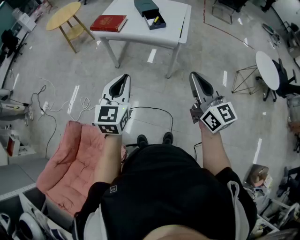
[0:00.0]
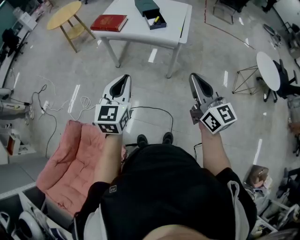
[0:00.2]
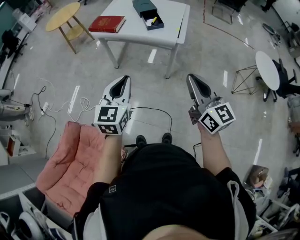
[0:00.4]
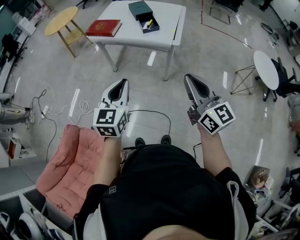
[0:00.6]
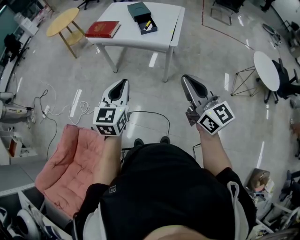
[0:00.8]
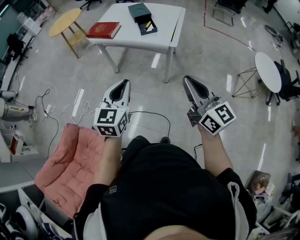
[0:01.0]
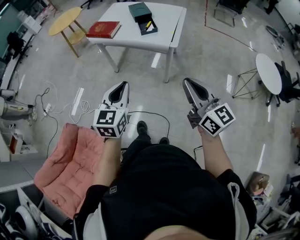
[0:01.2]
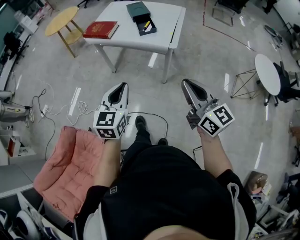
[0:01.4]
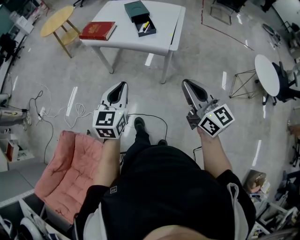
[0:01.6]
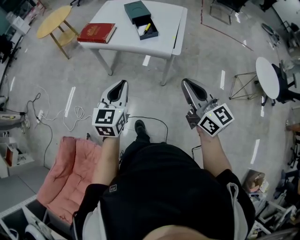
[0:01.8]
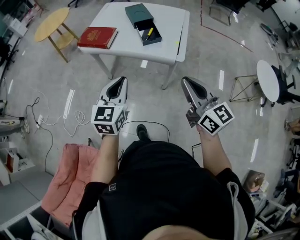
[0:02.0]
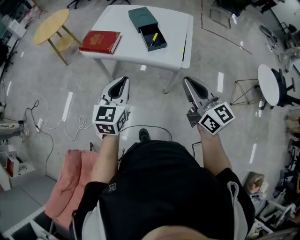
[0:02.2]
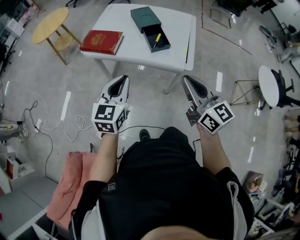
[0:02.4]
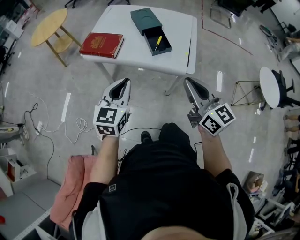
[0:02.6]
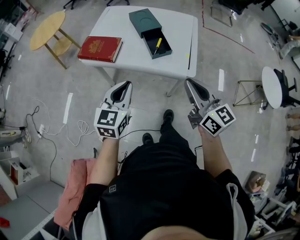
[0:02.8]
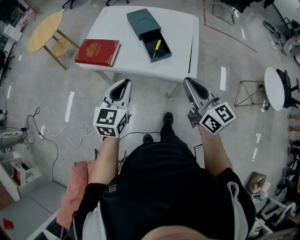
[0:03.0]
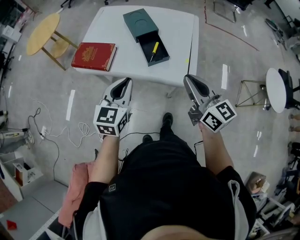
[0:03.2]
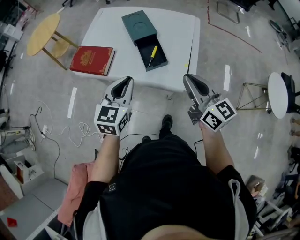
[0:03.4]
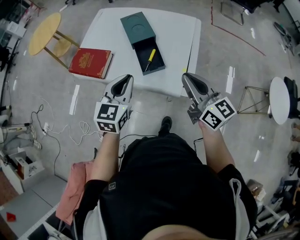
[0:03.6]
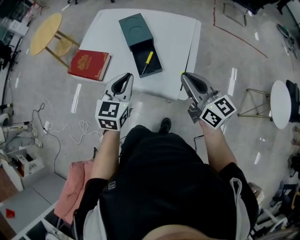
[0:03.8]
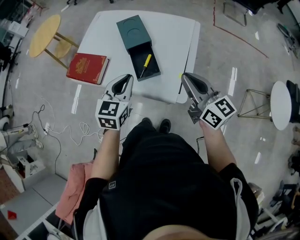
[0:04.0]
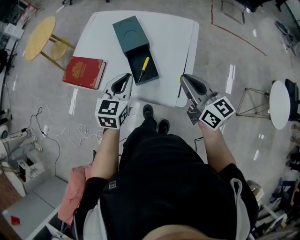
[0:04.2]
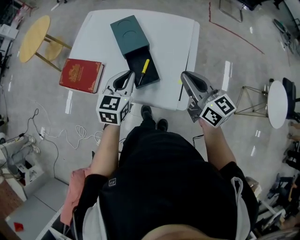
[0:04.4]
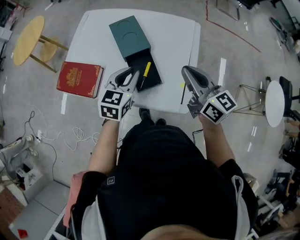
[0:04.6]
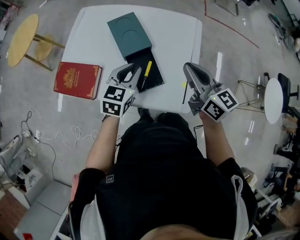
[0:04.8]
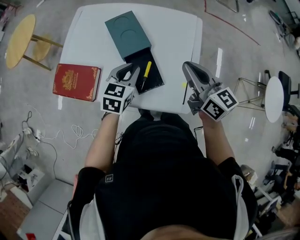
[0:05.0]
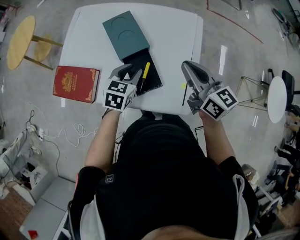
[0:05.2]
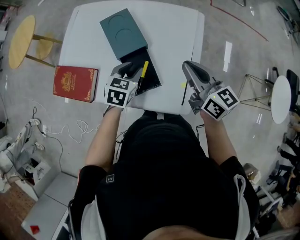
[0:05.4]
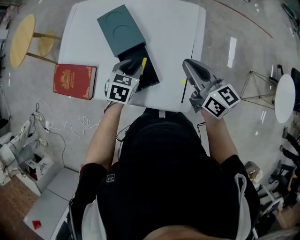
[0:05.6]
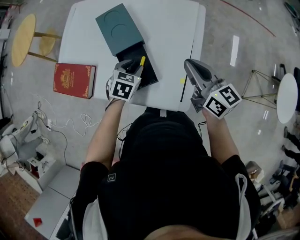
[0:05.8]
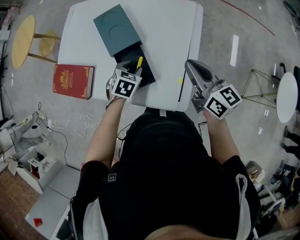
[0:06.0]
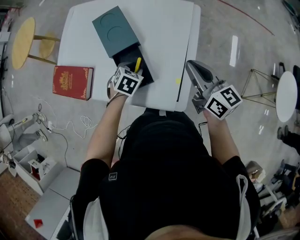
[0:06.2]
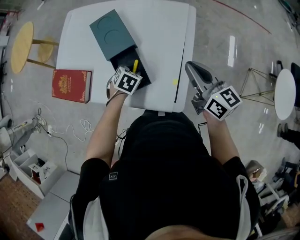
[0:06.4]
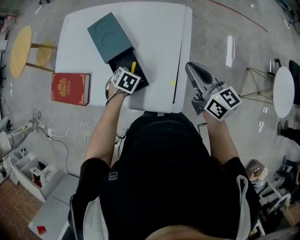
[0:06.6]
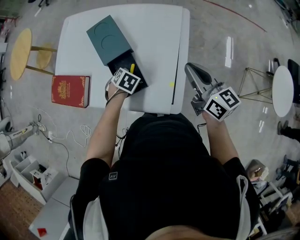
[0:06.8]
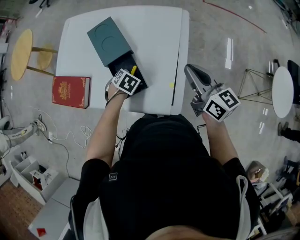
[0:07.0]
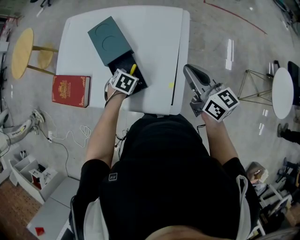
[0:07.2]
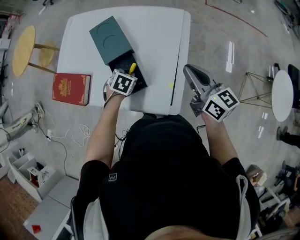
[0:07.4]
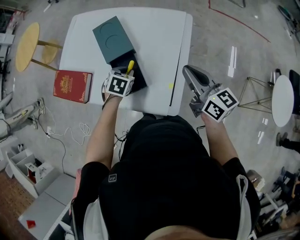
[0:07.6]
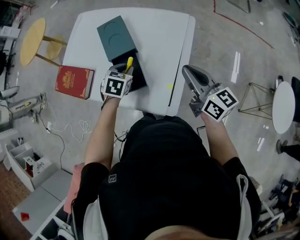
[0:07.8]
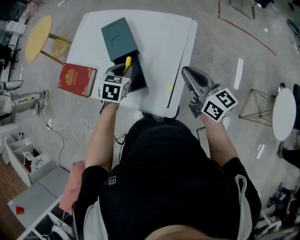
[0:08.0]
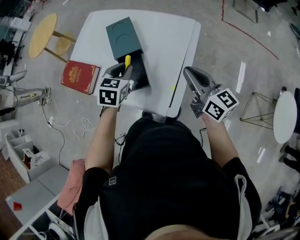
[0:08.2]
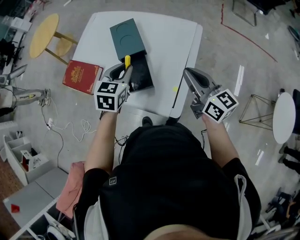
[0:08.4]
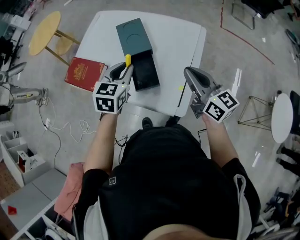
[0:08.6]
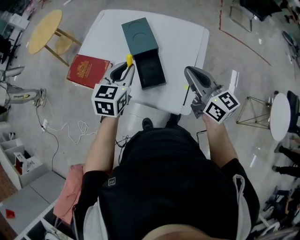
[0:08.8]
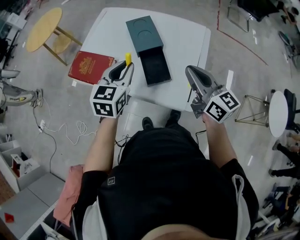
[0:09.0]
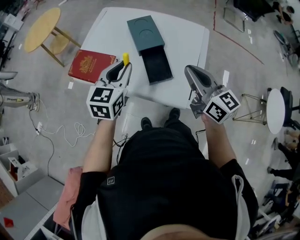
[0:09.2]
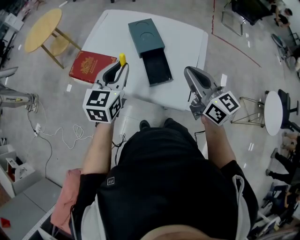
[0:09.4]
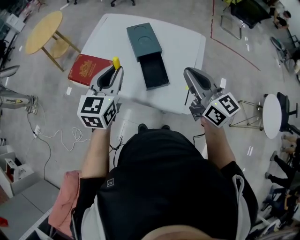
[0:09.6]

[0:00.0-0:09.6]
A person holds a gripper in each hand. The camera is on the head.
0:00.0 to 0:01.6: The grippers both shift to the right and forward by approximately 10 cm.
0:01.6 to 0:03.2: Both grippers travel together forward, about 35 cm.
0:03.2 to 0:04.8: The right gripper is displaced forward by roughly 25 cm; the left gripper heads forward and to the right, covering some 30 cm.
0:04.8 to 0:06.4: The right gripper heads to the right and downward, covering approximately 10 cm. Meanwhile the left gripper is displaced downward by some 20 cm, angles its fingers downward, by approximately 40 degrees, and opens.
0:06.4 to 0:08.0: The left gripper goes some 15 cm upward, swivels roughly 30 degrees, and closes up.
0:08.0 to 0:09.6: The left gripper heads to the left, upward and backward, covering some 25 cm, and angles its fingers upward, by roughly 30 degrees. Meanwhile the right gripper shifts approximately 20 cm to the left and upward.

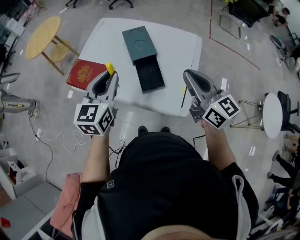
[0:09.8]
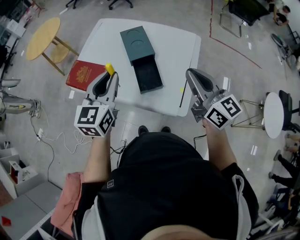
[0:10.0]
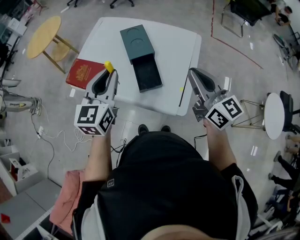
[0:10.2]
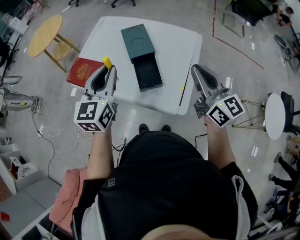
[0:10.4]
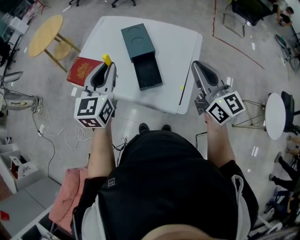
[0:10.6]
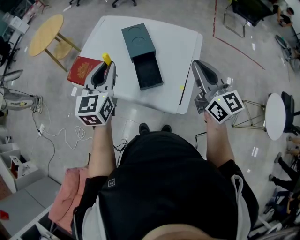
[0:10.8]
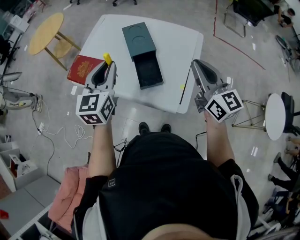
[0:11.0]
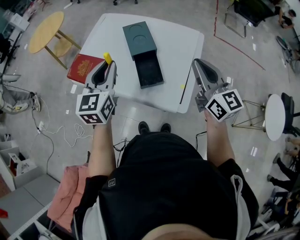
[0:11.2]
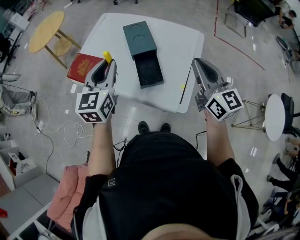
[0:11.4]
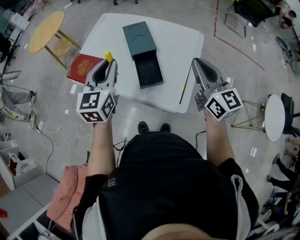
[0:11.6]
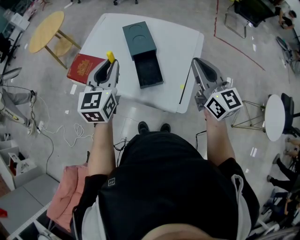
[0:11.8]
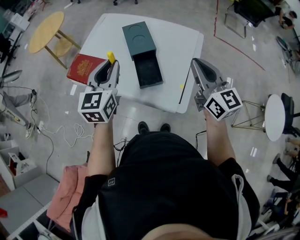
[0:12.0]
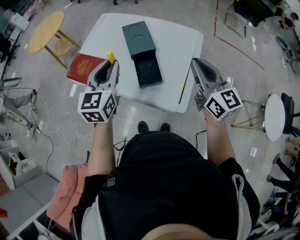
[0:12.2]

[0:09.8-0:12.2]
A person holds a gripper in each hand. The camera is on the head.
0:09.8 to 0:11.0: The right gripper shifts some 5 cm to the right.
0:11.0 to 0:12.2: The two grippers keep their place.

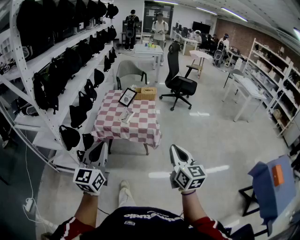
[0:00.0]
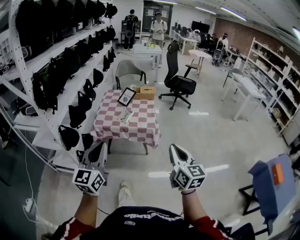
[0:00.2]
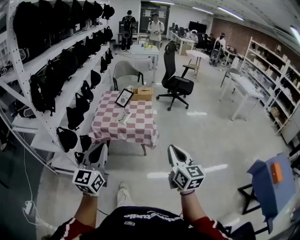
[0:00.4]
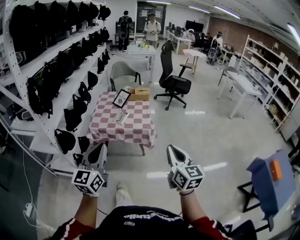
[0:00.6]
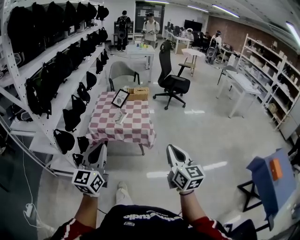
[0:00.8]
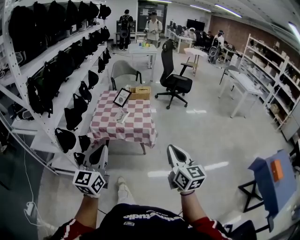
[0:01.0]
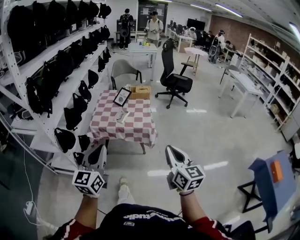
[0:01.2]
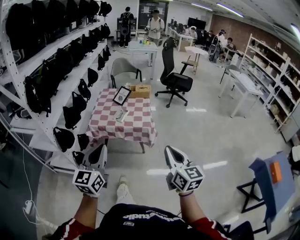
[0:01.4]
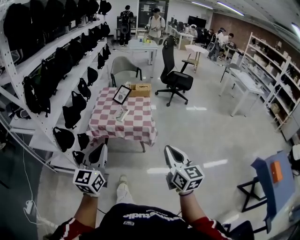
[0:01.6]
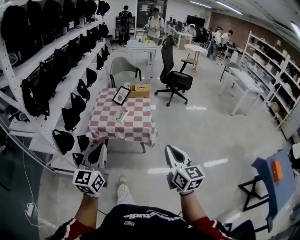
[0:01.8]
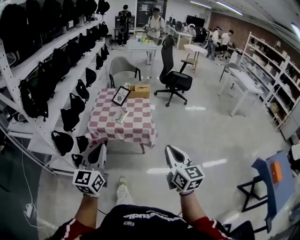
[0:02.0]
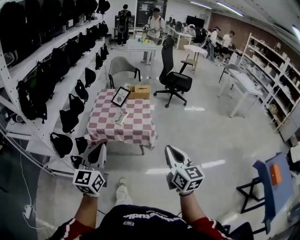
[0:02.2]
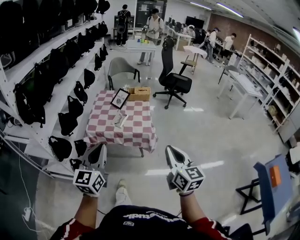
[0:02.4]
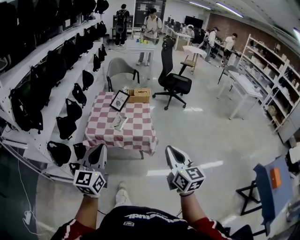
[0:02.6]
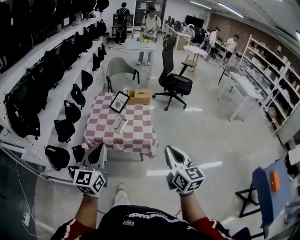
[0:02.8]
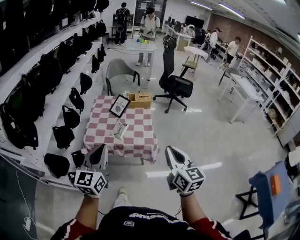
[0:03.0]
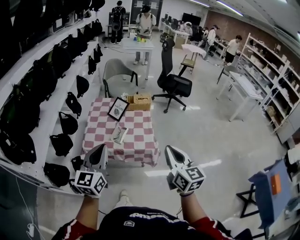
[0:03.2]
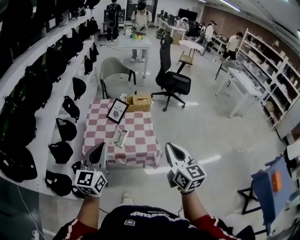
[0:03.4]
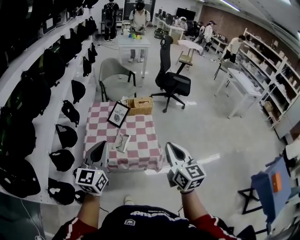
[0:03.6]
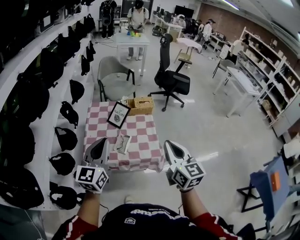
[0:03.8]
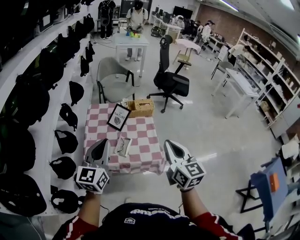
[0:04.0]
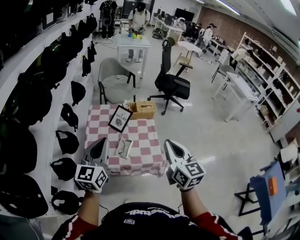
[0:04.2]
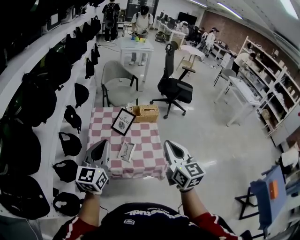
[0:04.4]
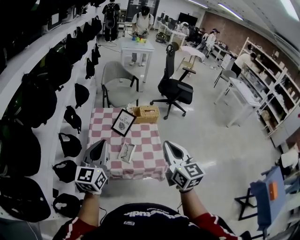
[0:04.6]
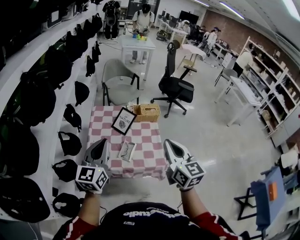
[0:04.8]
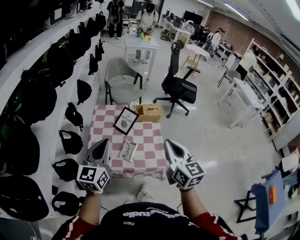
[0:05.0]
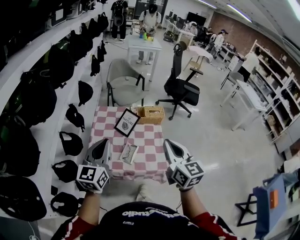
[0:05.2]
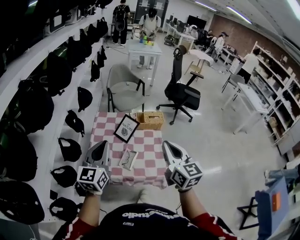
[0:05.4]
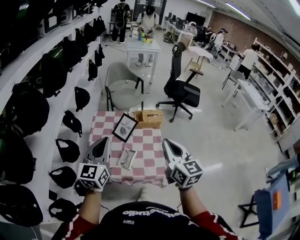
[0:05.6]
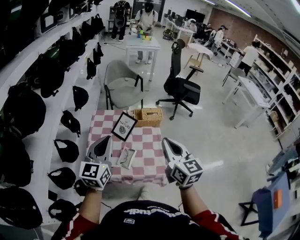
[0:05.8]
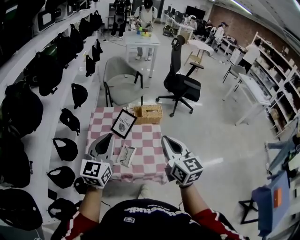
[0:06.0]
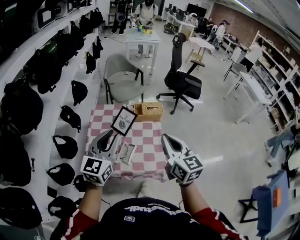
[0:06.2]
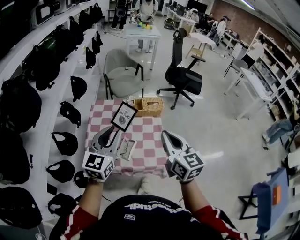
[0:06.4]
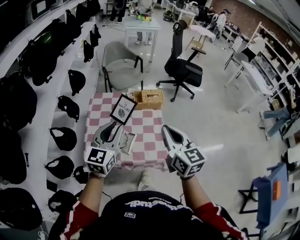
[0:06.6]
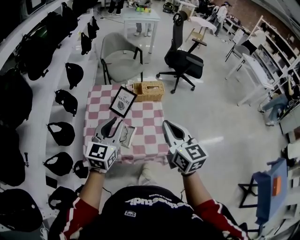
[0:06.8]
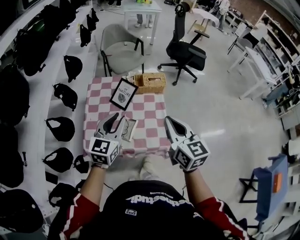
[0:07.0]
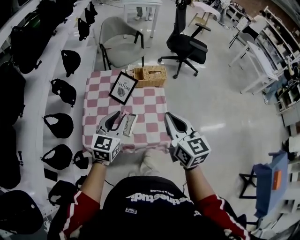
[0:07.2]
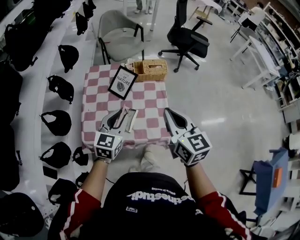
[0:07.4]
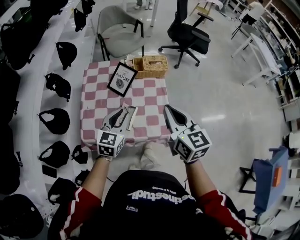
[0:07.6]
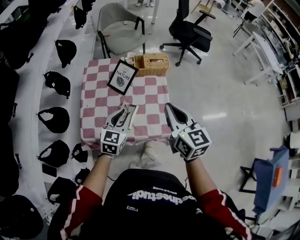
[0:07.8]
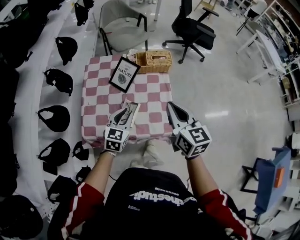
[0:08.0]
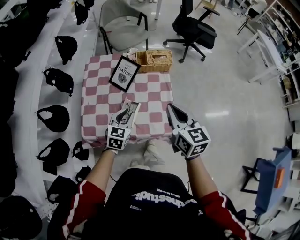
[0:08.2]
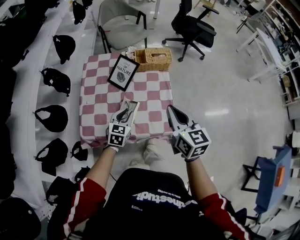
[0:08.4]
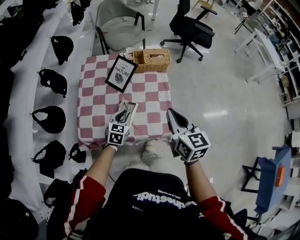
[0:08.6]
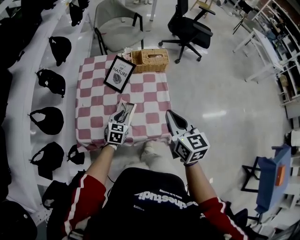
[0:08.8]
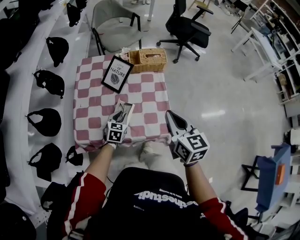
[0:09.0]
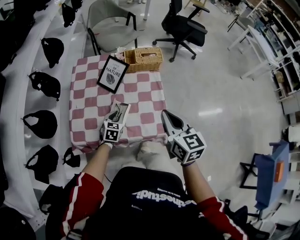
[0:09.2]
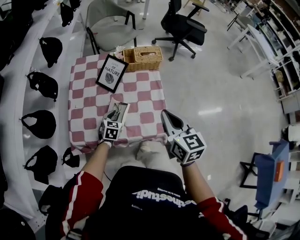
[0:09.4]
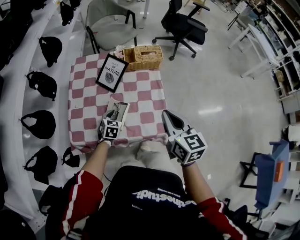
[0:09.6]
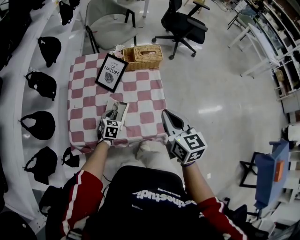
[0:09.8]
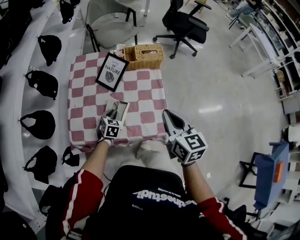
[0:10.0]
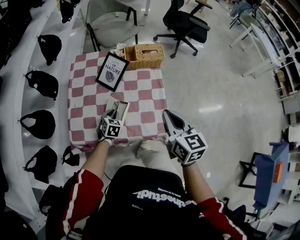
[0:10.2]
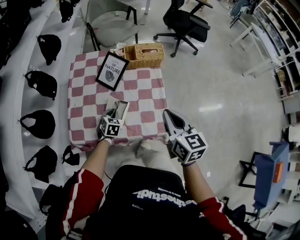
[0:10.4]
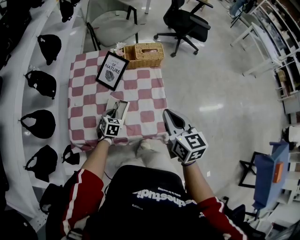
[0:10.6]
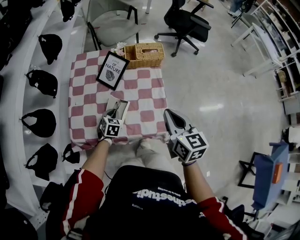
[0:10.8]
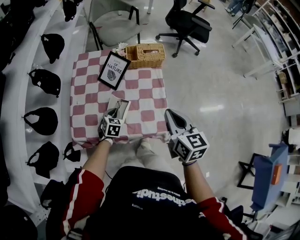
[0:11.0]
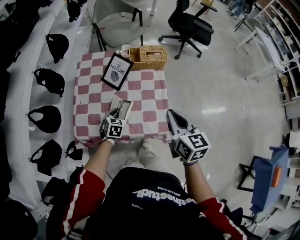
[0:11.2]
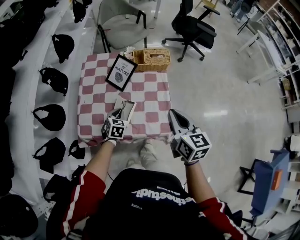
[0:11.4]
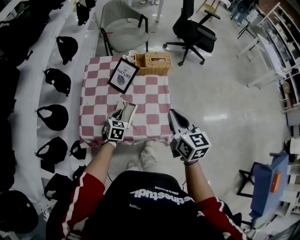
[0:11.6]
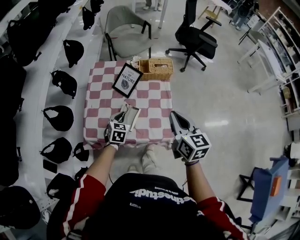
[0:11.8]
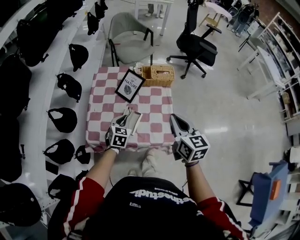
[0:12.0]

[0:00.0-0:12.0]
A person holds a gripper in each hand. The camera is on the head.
0:00.0 to 0:01.6: The grippers stay close to where they were, moving slightly.
0:01.6 to 0:03.0: The grippers both shift forward by roughly 20 cm.
0:03.0 to 0:04.4: The grippers both shift forward and to the left by approximately 25 cm.
0:04.4 to 0:06.0: The left gripper travels forward and to the right by approximately 10 cm; the right gripper goes some 10 cm forward.
0:06.0 to 0:07.6: The left gripper shifts approximately 20 cm downward, and swivels approximately 20 degrees, while the right gripper heads downward, covering roughly 10 cm.
0:07.6 to 0:09.0: The right gripper moves downward, approximately 10 cm. The left gripper moves downward, about 25 cm.
0:09.0 to 0:10.4: The left gripper moves some 5 cm.
0:10.4 to 0:12.0: The left gripper moves upward, about 15 cm. The right gripper is displaced upward by roughly 10 cm.
